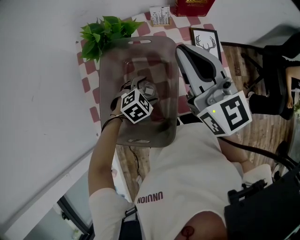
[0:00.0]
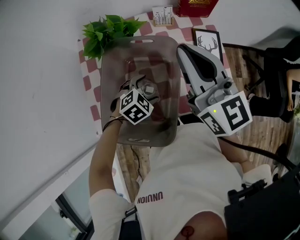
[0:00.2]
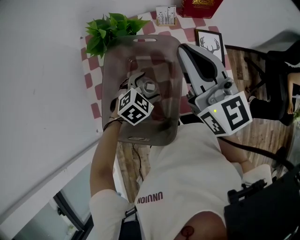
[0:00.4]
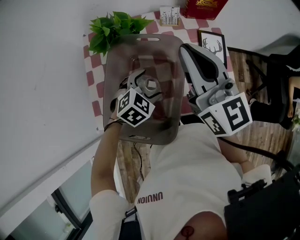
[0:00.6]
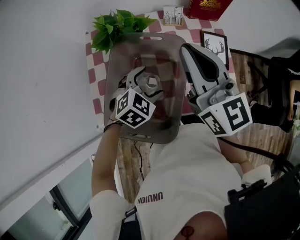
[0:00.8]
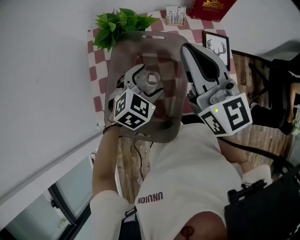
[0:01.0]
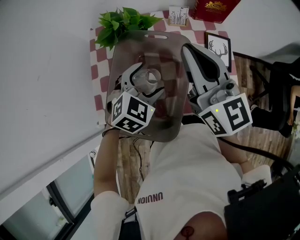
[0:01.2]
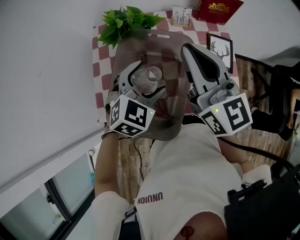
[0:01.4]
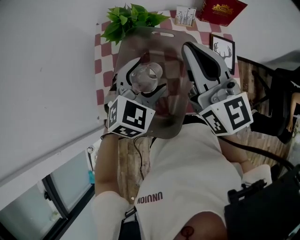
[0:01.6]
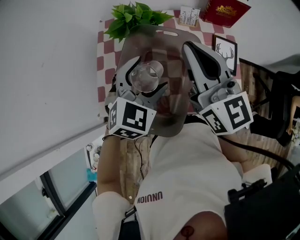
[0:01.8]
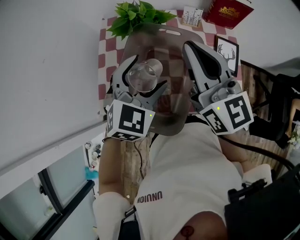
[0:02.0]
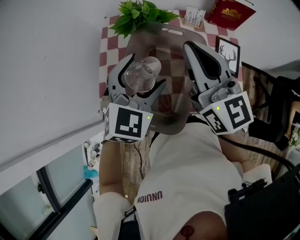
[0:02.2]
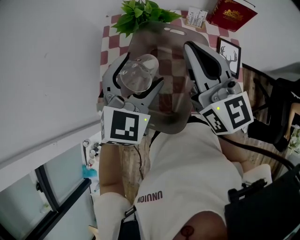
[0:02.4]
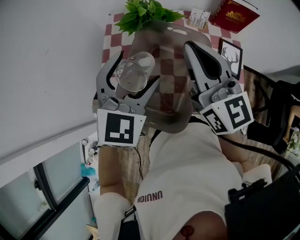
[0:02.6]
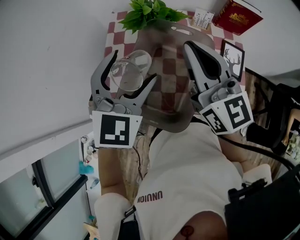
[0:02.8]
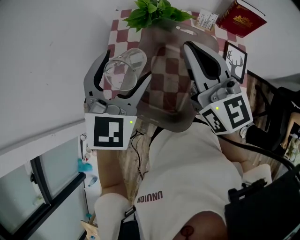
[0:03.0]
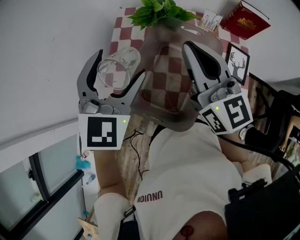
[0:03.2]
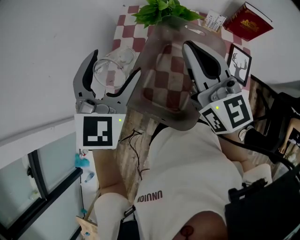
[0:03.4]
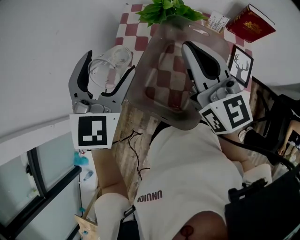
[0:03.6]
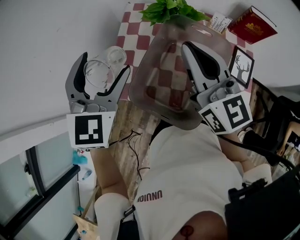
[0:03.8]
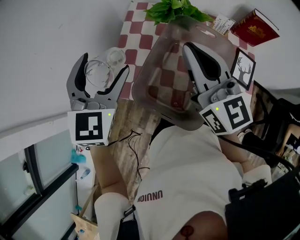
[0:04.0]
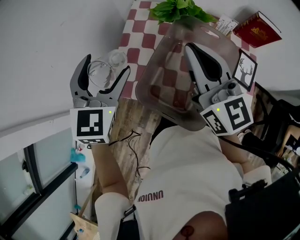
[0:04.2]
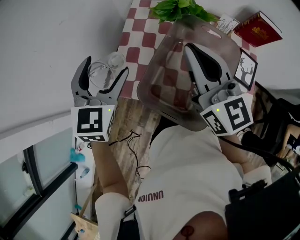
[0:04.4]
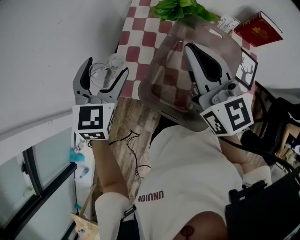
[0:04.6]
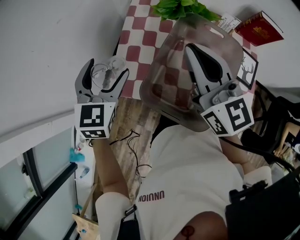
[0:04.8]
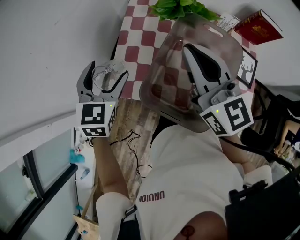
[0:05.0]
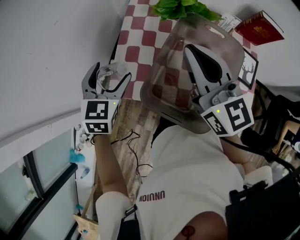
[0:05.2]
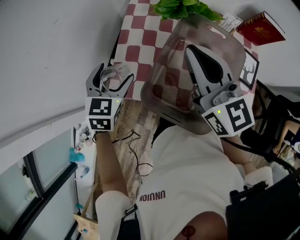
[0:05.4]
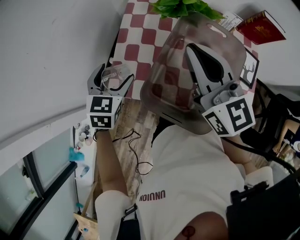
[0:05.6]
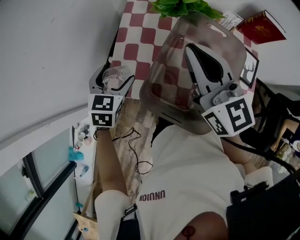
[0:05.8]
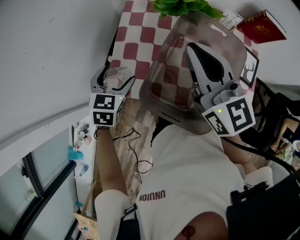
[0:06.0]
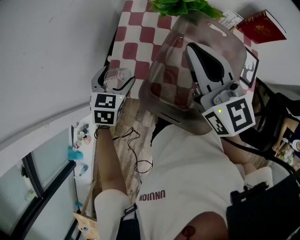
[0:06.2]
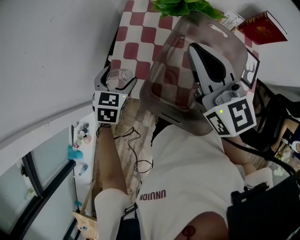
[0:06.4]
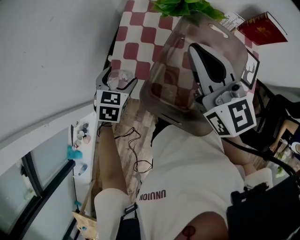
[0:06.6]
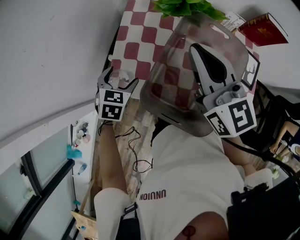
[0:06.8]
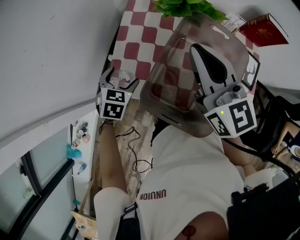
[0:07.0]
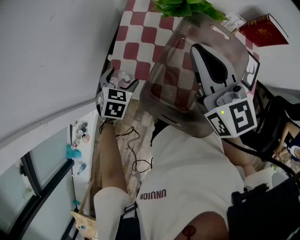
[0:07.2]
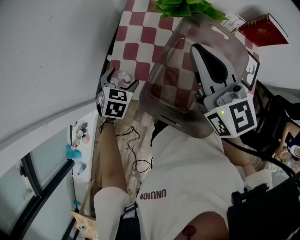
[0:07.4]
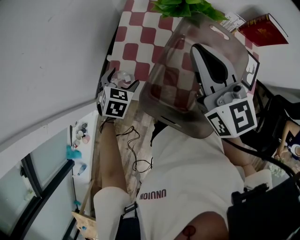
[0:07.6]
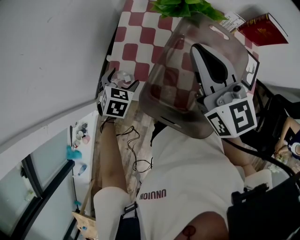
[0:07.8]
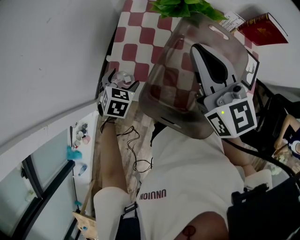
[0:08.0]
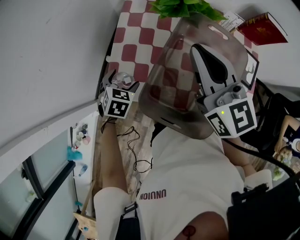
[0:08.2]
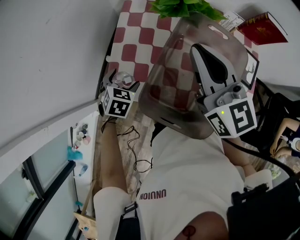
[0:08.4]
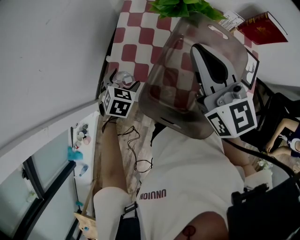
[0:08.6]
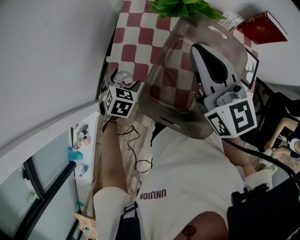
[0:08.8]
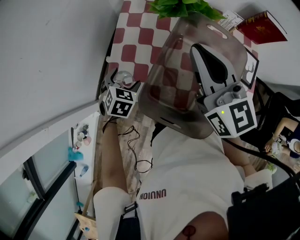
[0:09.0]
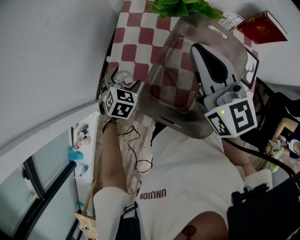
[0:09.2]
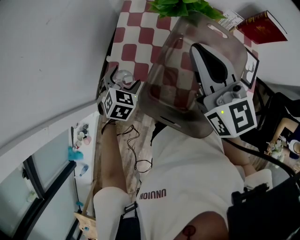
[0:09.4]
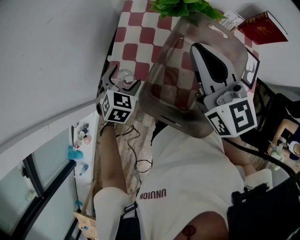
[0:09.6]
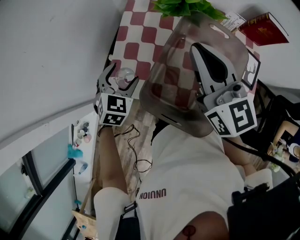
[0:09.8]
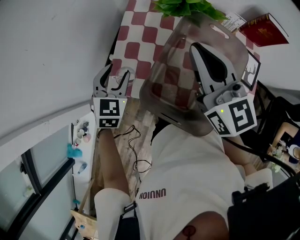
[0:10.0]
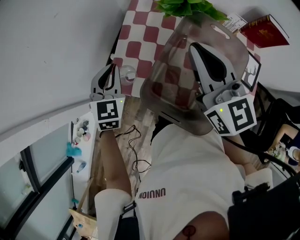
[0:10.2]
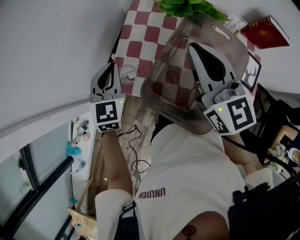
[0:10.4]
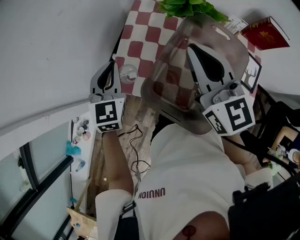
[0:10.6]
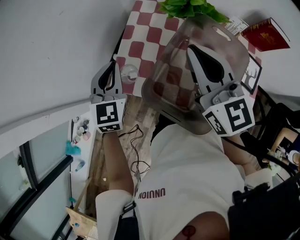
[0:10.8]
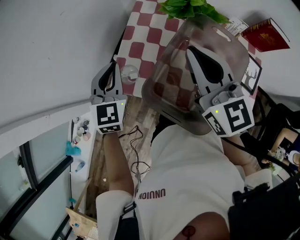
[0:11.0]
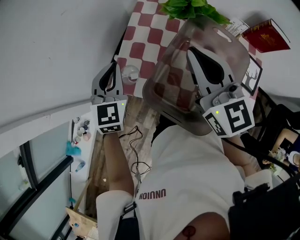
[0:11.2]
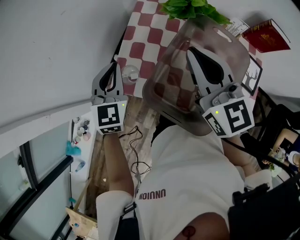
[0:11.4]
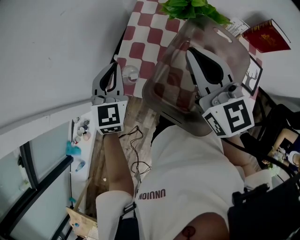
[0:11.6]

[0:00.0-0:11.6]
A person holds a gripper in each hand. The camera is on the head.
0:00.0 to 0:01.4: The left gripper is displaced upward by about 15 cm, and swivels approximately 30 degrees.
0:01.4 to 0:02.8: The left gripper goes about 15 cm upward and to the left, and turns by approximately 30 degrees. The right gripper shifts some 5 cm to the left.
0:02.8 to 0:04.4: The right gripper is displaced to the left by approximately 10 cm. Meanwhile the left gripper heads to the left, covering approximately 15 cm, and turns by approximately 30 degrees.
0:04.4 to 0:05.8: The left gripper heads downward, covering roughly 15 cm, and turns by approximately 20 degrees.
0:05.8 to 0:07.2: The left gripper is displaced downward by approximately 10 cm.
0:07.2 to 0:08.8: The grippers move only a little.
0:08.8 to 0:10.2: The left gripper shifts roughly 15 cm upward, changes its angle by about 30 degrees, and closes up.
0:10.2 to 0:11.6: There are only small adjustments of the grippers.

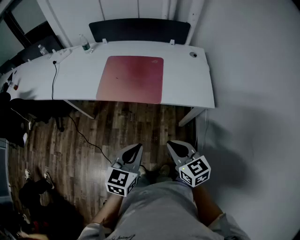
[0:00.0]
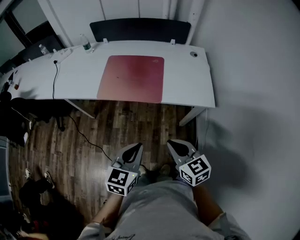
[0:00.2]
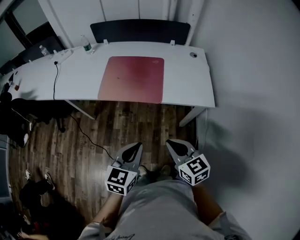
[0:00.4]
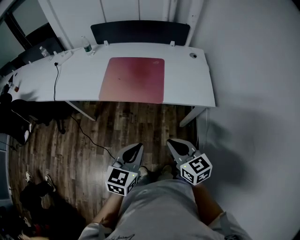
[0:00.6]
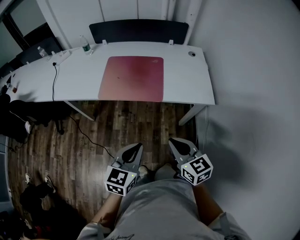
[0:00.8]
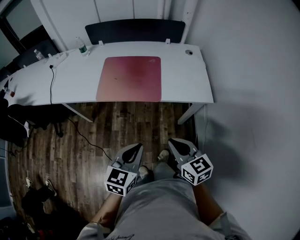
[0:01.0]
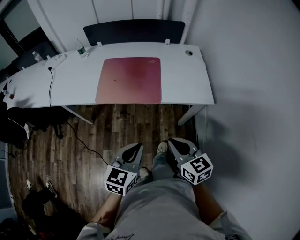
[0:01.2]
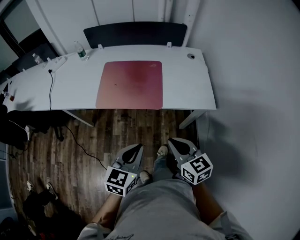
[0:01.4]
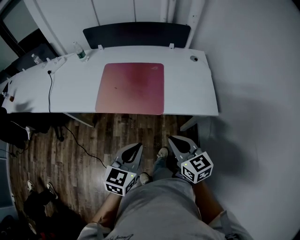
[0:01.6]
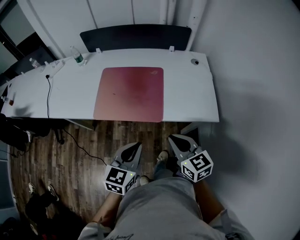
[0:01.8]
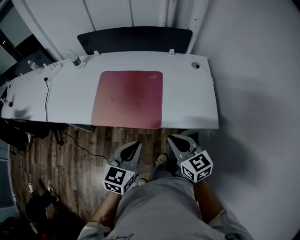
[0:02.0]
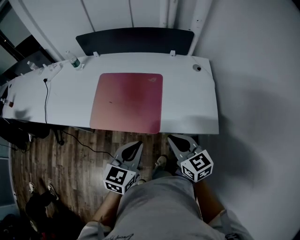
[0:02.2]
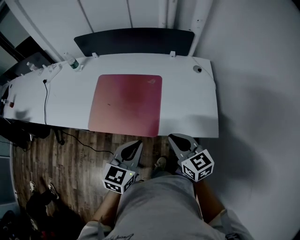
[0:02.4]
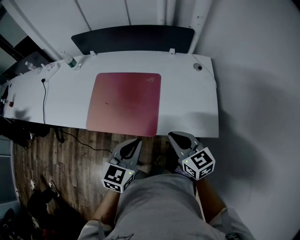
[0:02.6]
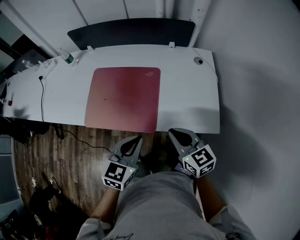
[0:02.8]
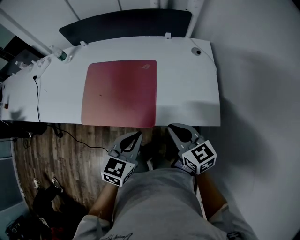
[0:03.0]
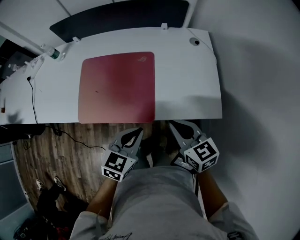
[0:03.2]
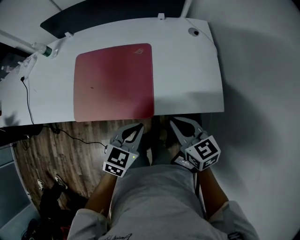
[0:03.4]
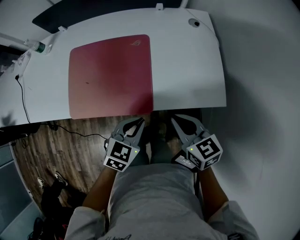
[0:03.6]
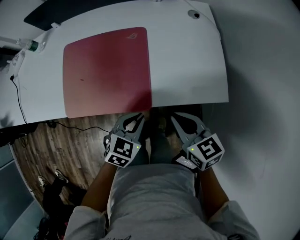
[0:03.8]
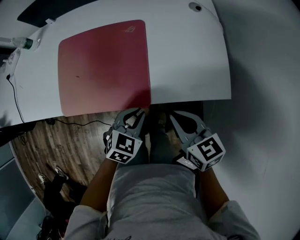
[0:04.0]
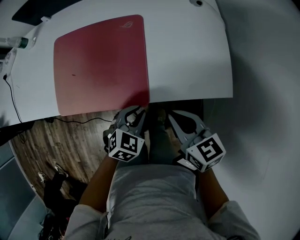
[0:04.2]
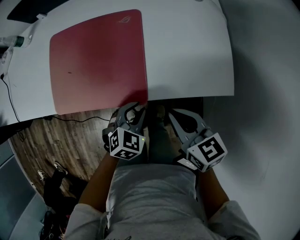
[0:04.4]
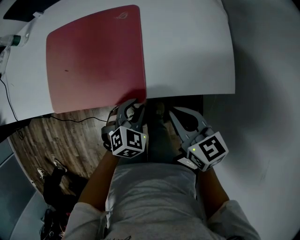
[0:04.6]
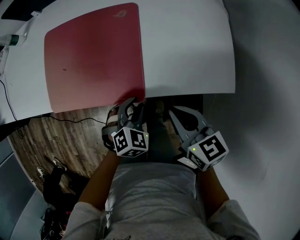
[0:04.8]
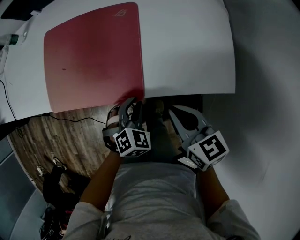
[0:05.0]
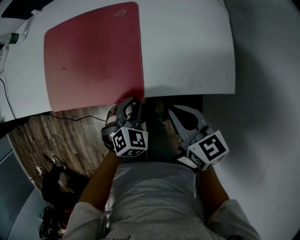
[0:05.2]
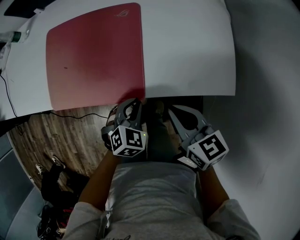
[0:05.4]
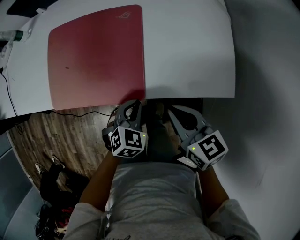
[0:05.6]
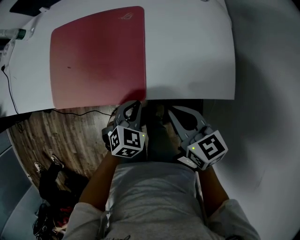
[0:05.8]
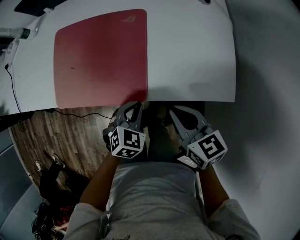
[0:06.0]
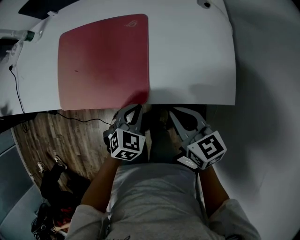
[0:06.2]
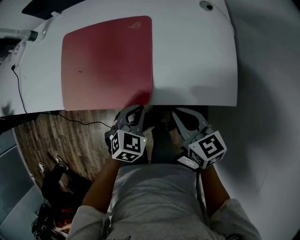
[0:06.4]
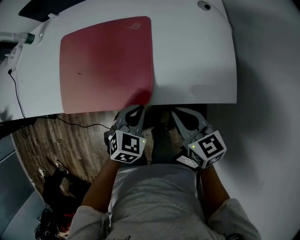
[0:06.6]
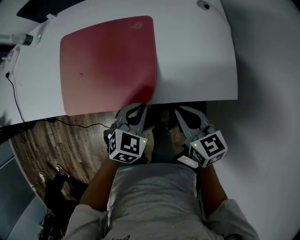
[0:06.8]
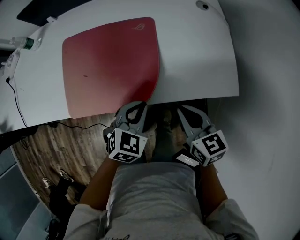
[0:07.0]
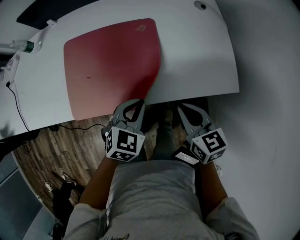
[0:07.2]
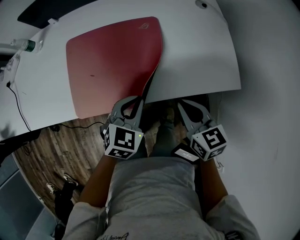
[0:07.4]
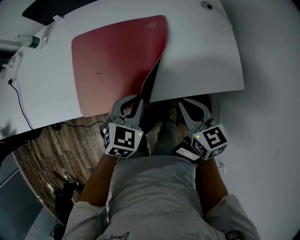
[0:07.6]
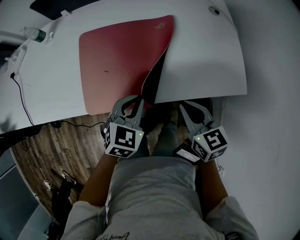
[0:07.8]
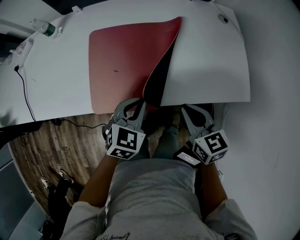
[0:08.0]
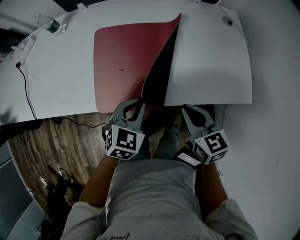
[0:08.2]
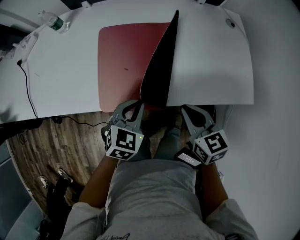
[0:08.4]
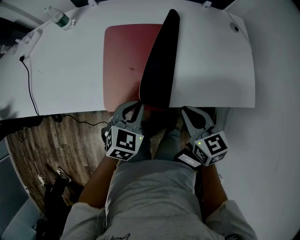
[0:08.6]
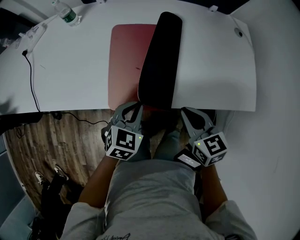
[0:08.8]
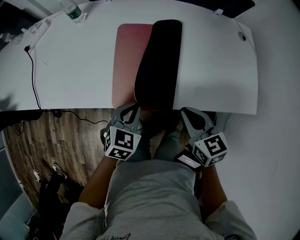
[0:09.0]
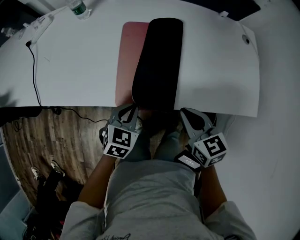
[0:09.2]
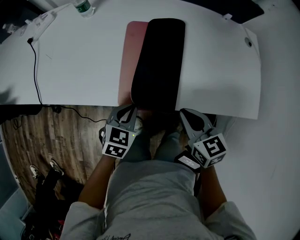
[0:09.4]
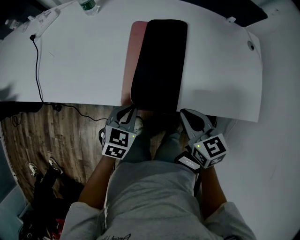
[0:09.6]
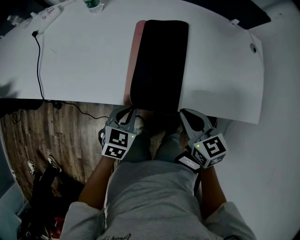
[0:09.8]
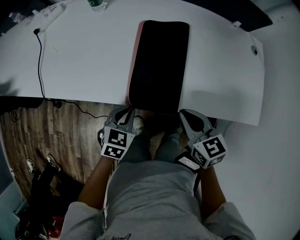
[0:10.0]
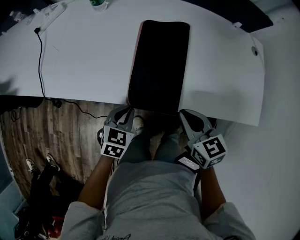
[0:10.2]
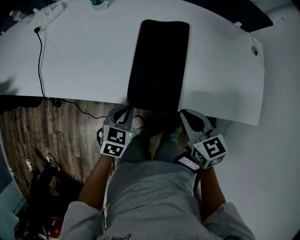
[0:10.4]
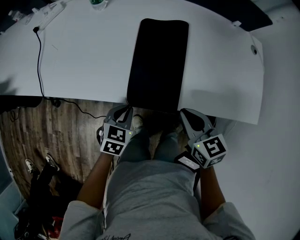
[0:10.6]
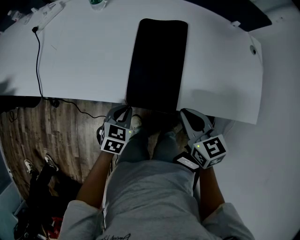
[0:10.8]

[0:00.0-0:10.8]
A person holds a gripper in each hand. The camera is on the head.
0:00.0 to 0:01.6: The grippers both shift forward by about 10 cm.
0:01.6 to 0:03.0: Both grippers move forward and to the right, approximately 20 cm.
0:03.0 to 0:04.6: The left gripper is displaced downward by some 20 cm, swivels roughly 40 degrees, and opens; the right gripper travels downward by approximately 10 cm.
0:04.6 to 0:06.2: The left gripper closes up.
0:06.2 to 0:07.8: The right gripper heads to the left, covering roughly 10 cm. The left gripper moves to the left and upward, approximately 15 cm.
0:07.8 to 0:09.2: The two grippers go approximately 15 cm to the left.
0:09.2 to 0:10.8: The left gripper is displaced to the left by about 5 cm.

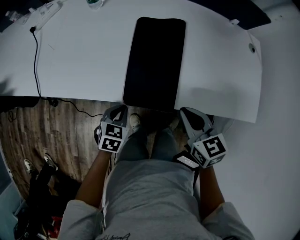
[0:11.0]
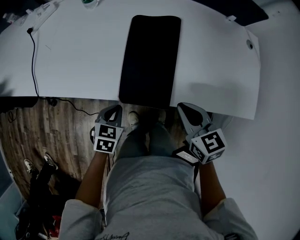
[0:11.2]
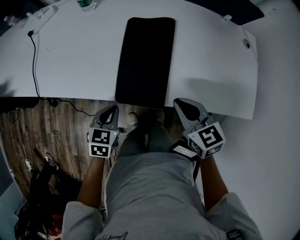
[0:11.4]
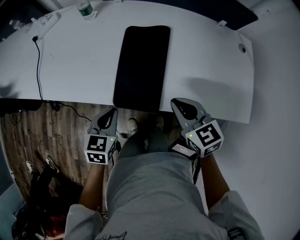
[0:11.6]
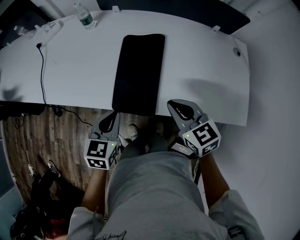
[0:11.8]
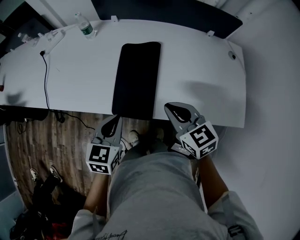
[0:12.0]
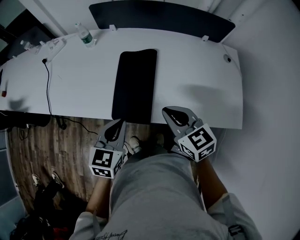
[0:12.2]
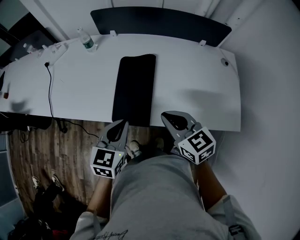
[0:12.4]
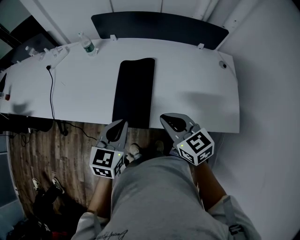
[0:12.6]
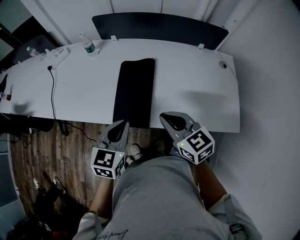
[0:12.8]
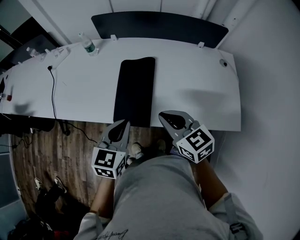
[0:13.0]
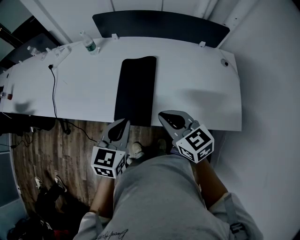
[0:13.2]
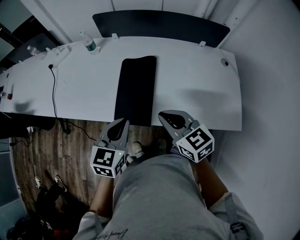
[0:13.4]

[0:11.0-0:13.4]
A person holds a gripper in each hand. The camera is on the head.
0:11.0 to 0:12.2: The right gripper heads upward, covering approximately 10 cm. Meanwhile the left gripper goes some 20 cm upward, and rotates approximately 20 degrees.
0:12.2 to 0:13.4: The grippers move only a little.
